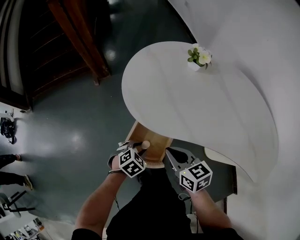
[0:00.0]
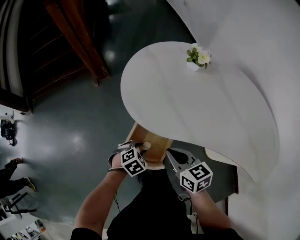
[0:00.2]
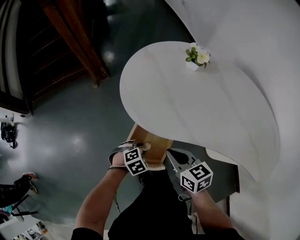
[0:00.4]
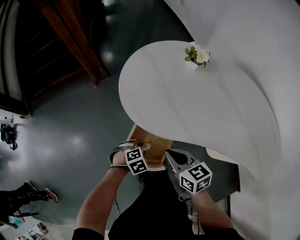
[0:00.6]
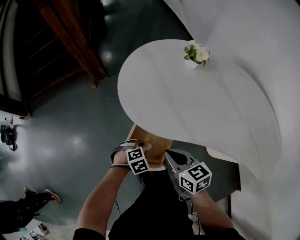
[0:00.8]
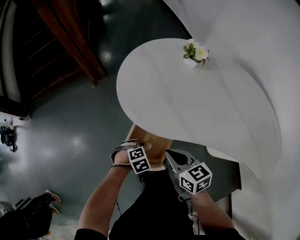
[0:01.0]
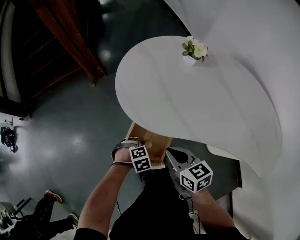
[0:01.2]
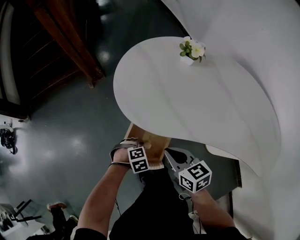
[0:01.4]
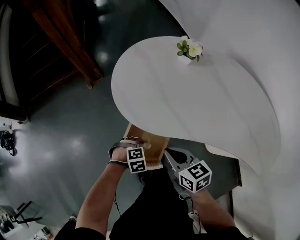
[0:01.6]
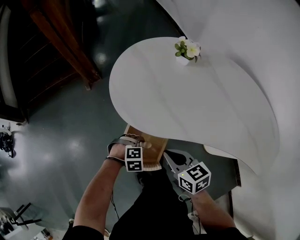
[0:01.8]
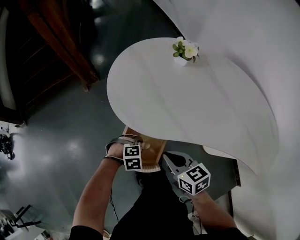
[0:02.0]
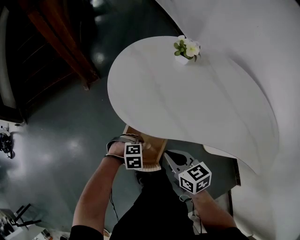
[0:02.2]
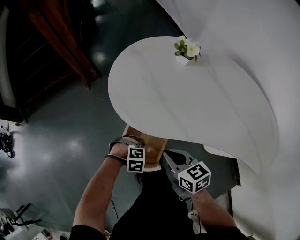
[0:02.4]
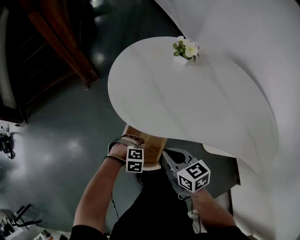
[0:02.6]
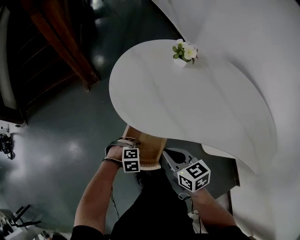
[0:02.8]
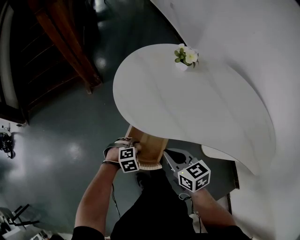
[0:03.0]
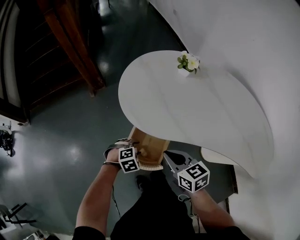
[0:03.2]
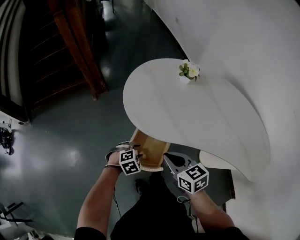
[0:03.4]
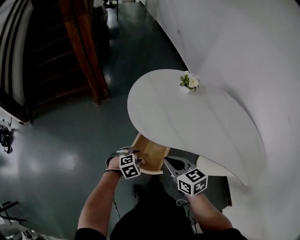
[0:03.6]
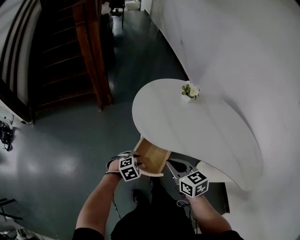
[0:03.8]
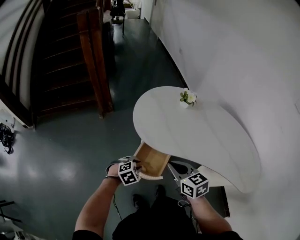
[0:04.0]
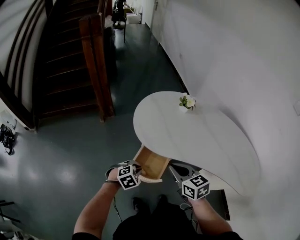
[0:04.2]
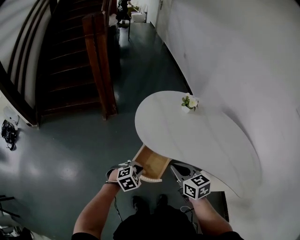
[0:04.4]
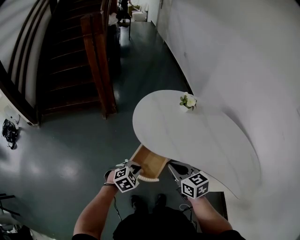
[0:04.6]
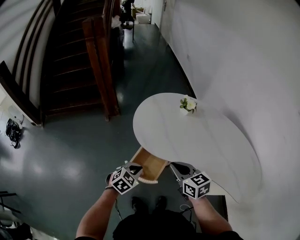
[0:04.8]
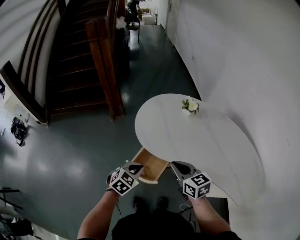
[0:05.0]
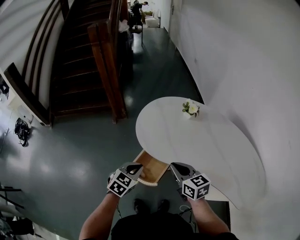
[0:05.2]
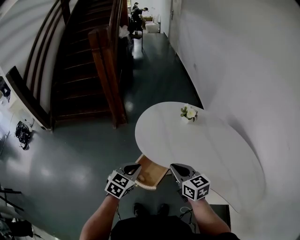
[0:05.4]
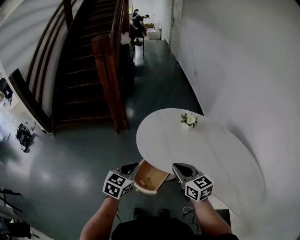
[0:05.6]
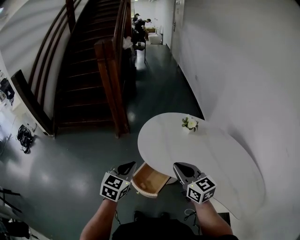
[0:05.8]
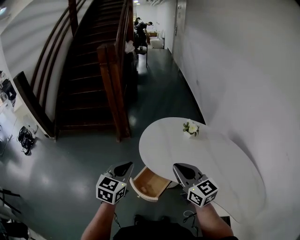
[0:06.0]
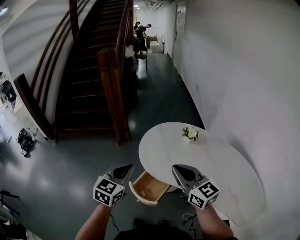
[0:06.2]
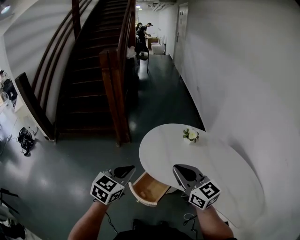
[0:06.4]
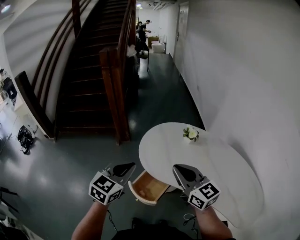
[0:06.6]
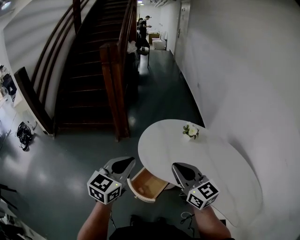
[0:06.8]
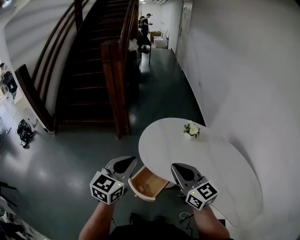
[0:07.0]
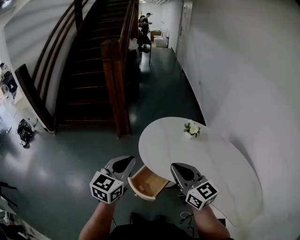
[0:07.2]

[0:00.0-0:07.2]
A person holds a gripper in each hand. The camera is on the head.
0:00.0 to 0:01.4: The left gripper shifts about 5 cm downward, and rotates some 30 degrees.
0:02.8 to 0:04.4: Both grippers move upward, roughly 15 cm. The left gripper rotates some 30 degrees, and closes.
0:04.4 to 0:05.8: The left gripper travels upward by approximately 20 cm, and angles its fingers upward, by approximately 30 degrees. The right gripper goes some 10 cm upward, and turns by roughly 20 degrees.
0:05.8 to 0:07.2: The two grippers go about 5 cm upward.

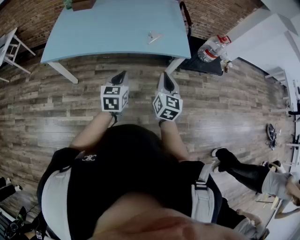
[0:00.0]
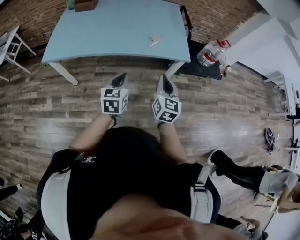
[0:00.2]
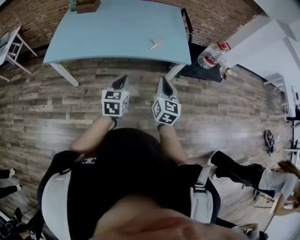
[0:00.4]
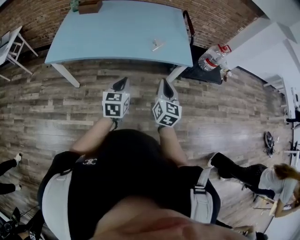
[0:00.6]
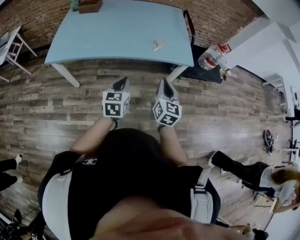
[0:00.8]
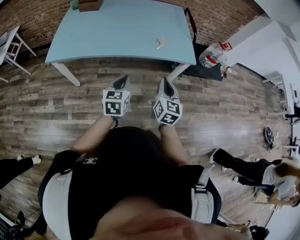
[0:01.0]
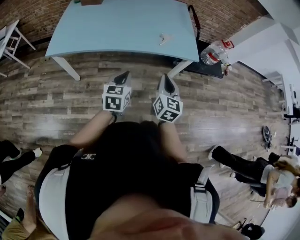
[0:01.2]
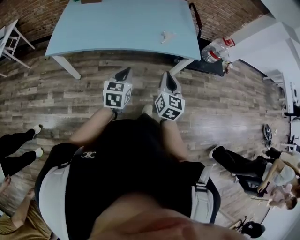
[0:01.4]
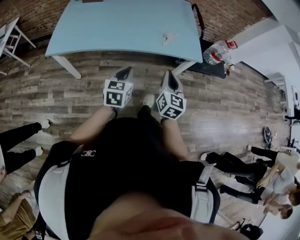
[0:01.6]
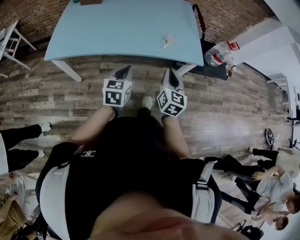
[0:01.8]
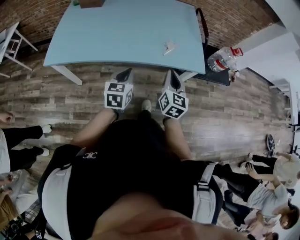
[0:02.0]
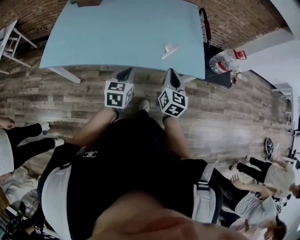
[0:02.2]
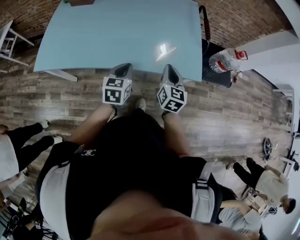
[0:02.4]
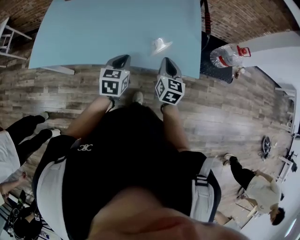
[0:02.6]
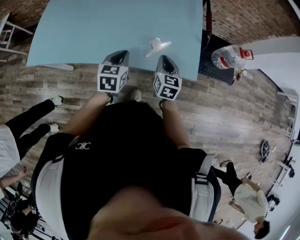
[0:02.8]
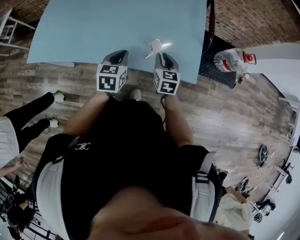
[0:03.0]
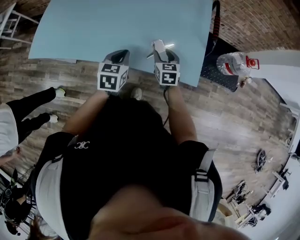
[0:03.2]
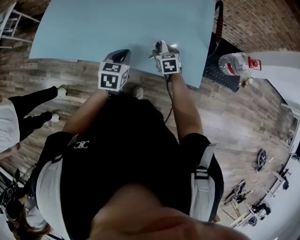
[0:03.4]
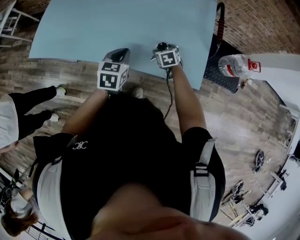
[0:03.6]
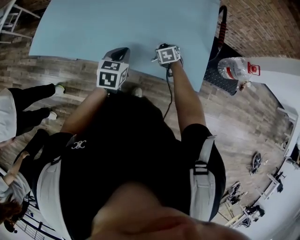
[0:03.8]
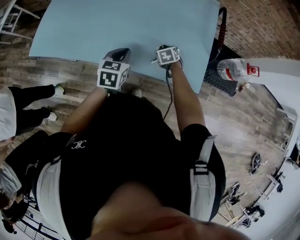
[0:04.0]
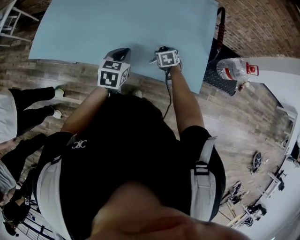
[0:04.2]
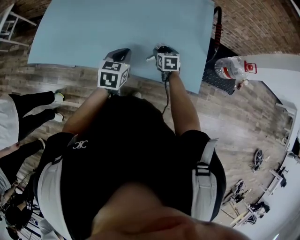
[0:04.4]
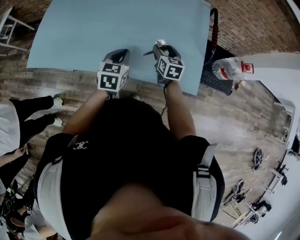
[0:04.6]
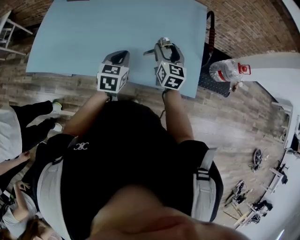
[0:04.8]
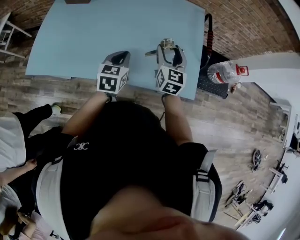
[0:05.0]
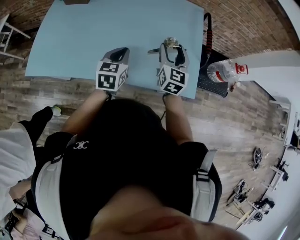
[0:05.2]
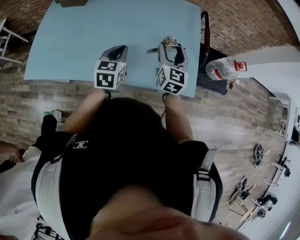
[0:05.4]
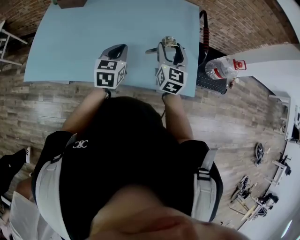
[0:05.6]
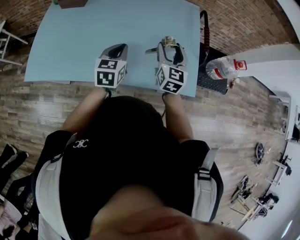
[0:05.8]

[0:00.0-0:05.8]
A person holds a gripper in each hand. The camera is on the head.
0:00.0 to 0:01.4: The grippers both shift to the left by about 10 cm.
0:01.4 to 0:02.8: Both grippers move forward, some 30 cm.
0:02.8 to 0:04.4: The right gripper travels forward and downward by roughly 20 cm, turns by some 30 degrees, and opens, while the left gripper is displaced forward by approximately 5 cm.
0:04.4 to 0:05.8: The right gripper moves upward, roughly 20 cm, and tilts its fingers some 40 degrees upward. The left gripper travels upward and forward by approximately 10 cm.

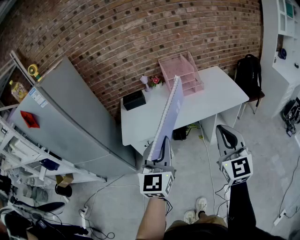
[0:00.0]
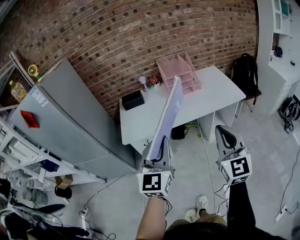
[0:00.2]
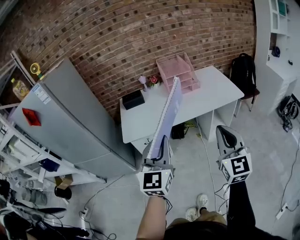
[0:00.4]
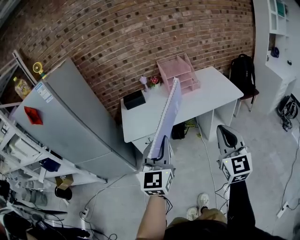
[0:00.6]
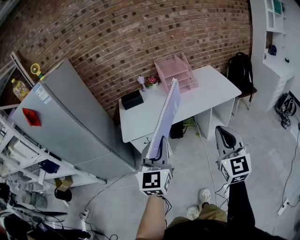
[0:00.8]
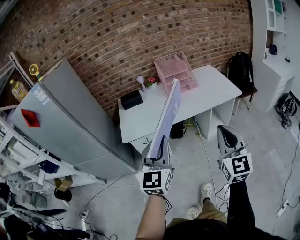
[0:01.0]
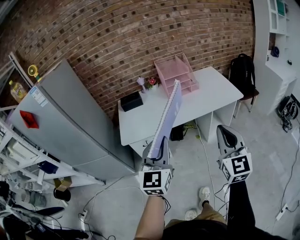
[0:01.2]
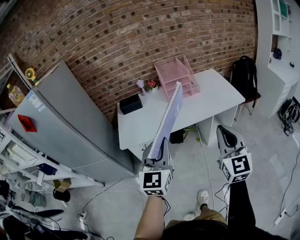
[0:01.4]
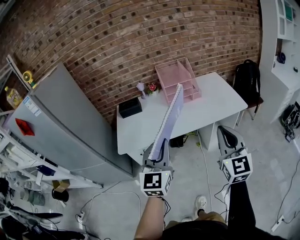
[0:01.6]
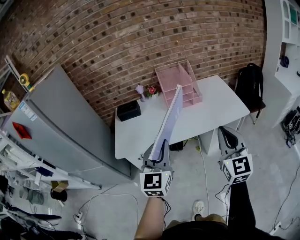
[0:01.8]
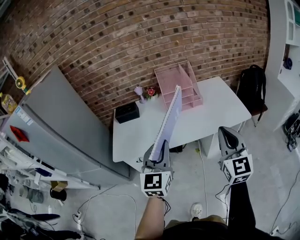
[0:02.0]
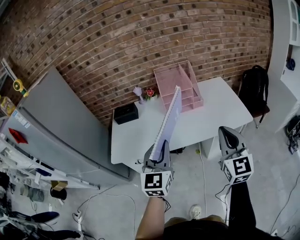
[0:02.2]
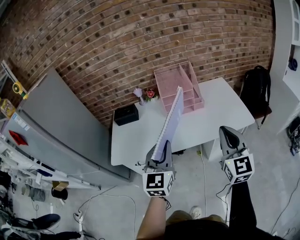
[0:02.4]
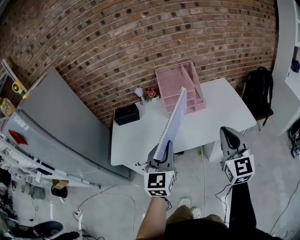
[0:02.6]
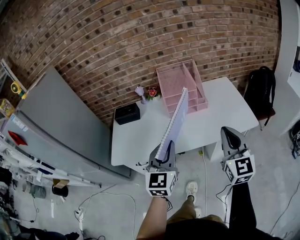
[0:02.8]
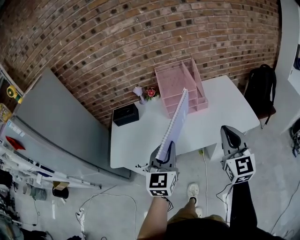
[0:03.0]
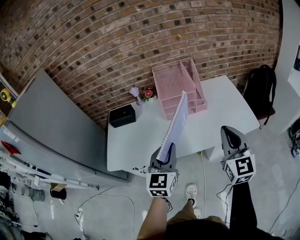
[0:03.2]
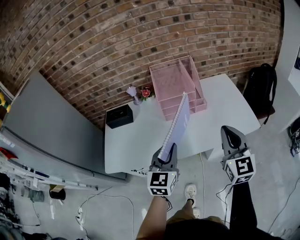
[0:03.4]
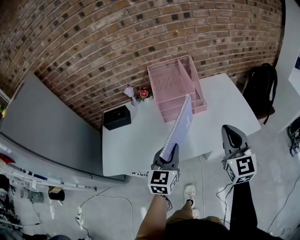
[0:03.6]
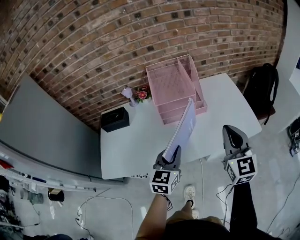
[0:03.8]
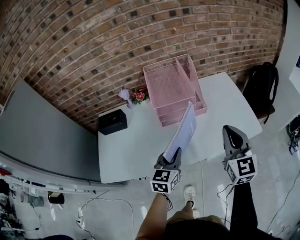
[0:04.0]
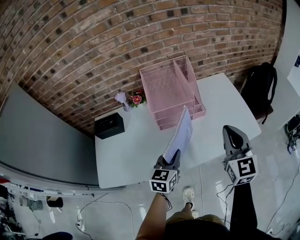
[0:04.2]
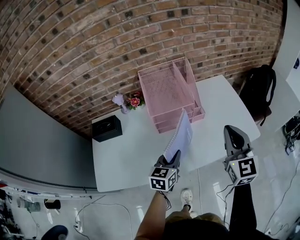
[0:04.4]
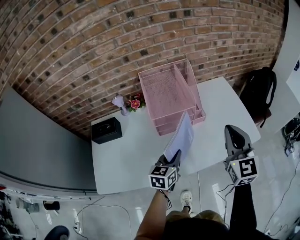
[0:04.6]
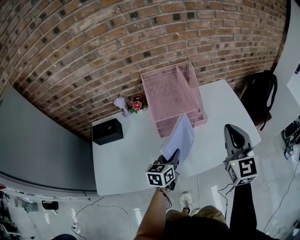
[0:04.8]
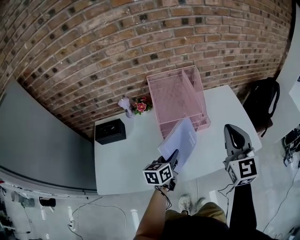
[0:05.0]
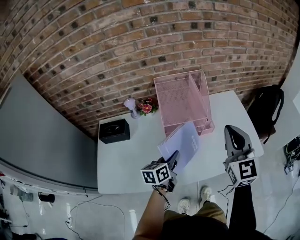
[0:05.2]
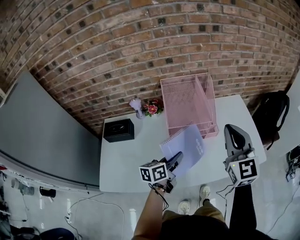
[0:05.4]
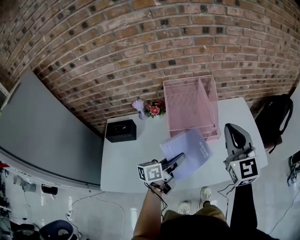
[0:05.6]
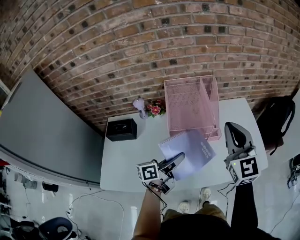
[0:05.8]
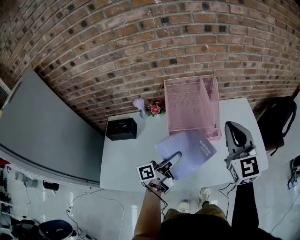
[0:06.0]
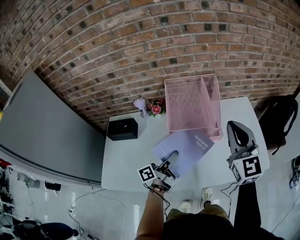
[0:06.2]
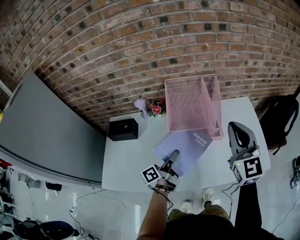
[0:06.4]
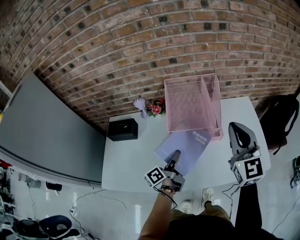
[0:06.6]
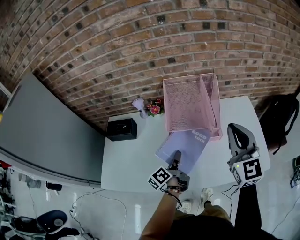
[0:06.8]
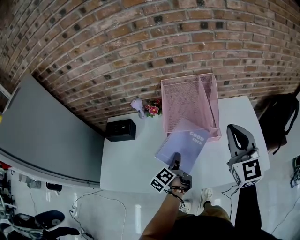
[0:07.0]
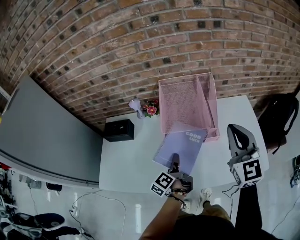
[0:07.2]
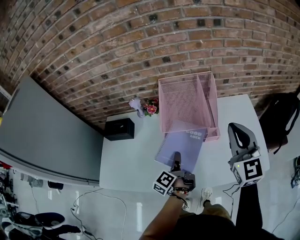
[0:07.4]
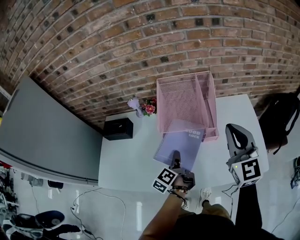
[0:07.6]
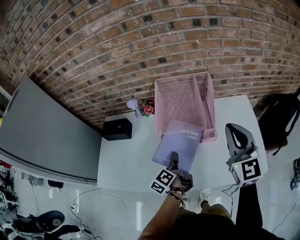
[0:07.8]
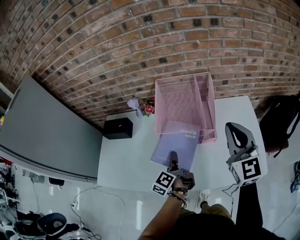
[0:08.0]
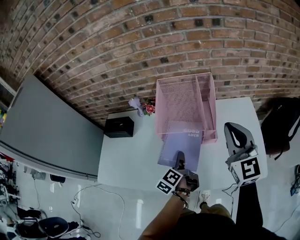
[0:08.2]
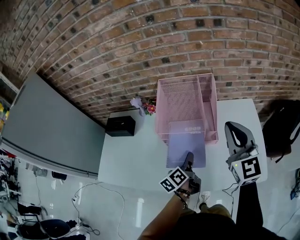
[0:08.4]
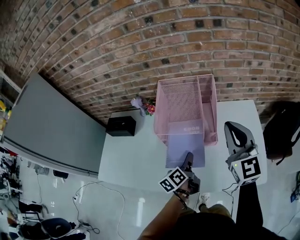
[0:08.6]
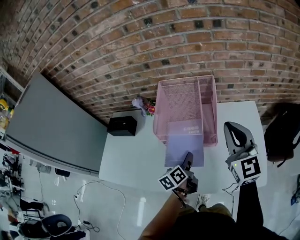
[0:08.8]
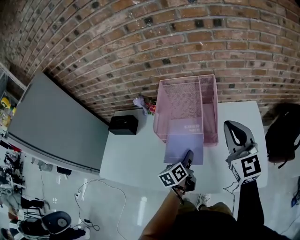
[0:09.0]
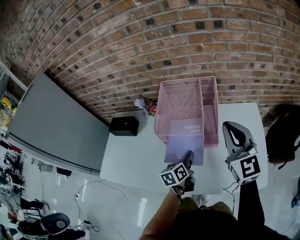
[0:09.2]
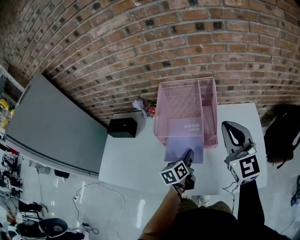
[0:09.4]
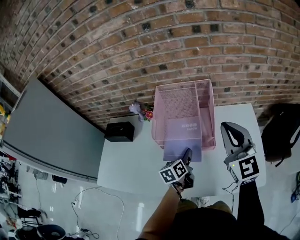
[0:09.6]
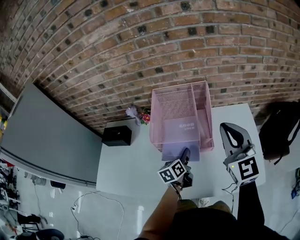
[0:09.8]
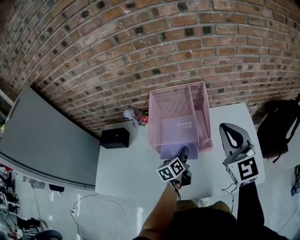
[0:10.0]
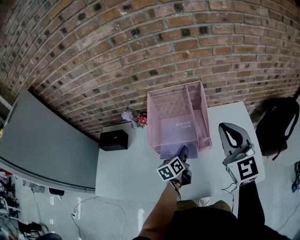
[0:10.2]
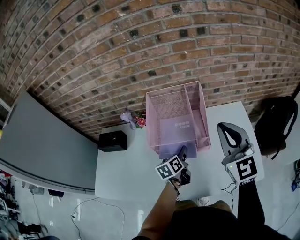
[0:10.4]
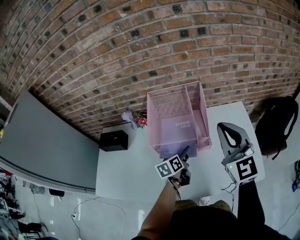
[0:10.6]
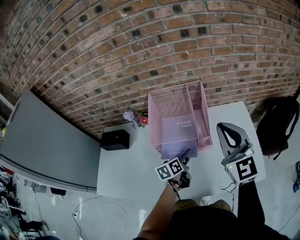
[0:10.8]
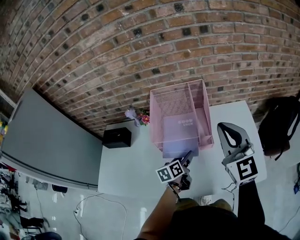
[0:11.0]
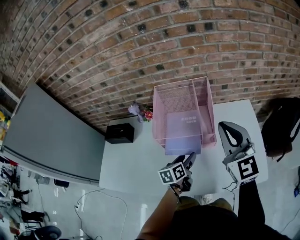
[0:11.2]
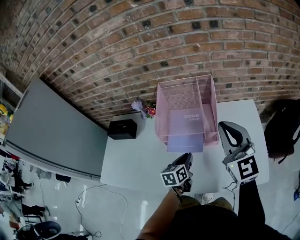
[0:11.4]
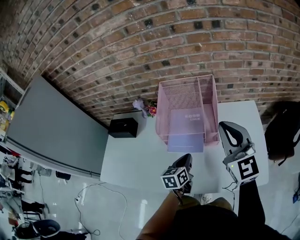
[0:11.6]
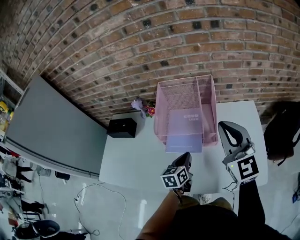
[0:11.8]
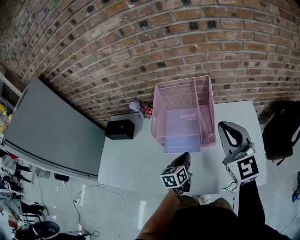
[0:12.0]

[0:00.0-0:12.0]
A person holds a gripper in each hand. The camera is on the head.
0:00.0 to 0:01.6: Both grippers move forward, roughly 5 cm.
0:01.6 to 0:03.0: Both grippers travel together forward, some 20 cm.
0:03.0 to 0:04.4: The right gripper shifts some 15 cm forward. Meanwhile the left gripper is displaced forward and downward by roughly 25 cm, and turns by about 30 degrees.
0:04.4 to 0:06.0: The right gripper is displaced forward, to the left and upward by some 15 cm; the left gripper travels to the left, forward and upward by roughly 10 cm, and rolls counterclockwise, seen from behind, by about 50 degrees.
0:06.0 to 0:07.6: The right gripper changes place by approximately 5 cm, while the left gripper travels downward by about 5 cm, and turns by about 50 degrees.
0:07.6 to 0:09.0: The right gripper changes place by roughly 5 cm, while the left gripper moves to the right, about 10 cm, and rotates about 30 degrees.
0:09.0 to 0:10.4: The left gripper heads forward, covering some 5 cm.
0:10.4 to 0:12.0: The left gripper shifts some 5 cm backward, and closes up.
